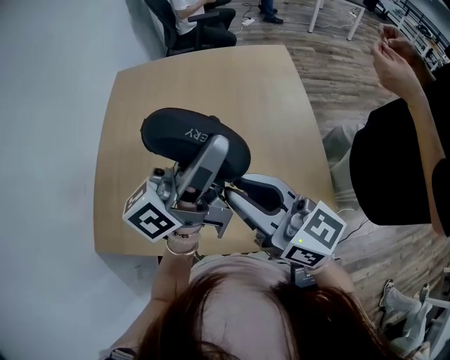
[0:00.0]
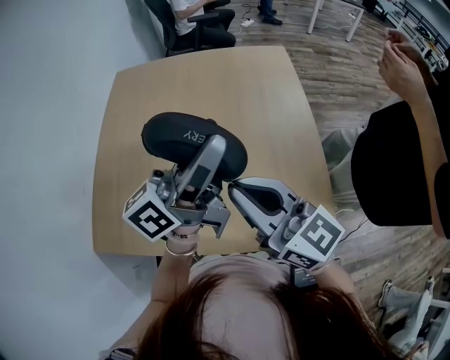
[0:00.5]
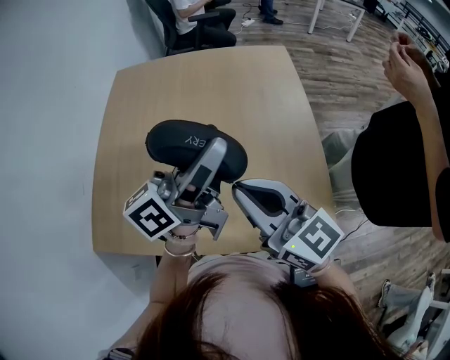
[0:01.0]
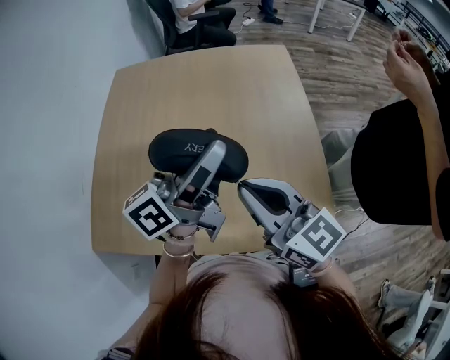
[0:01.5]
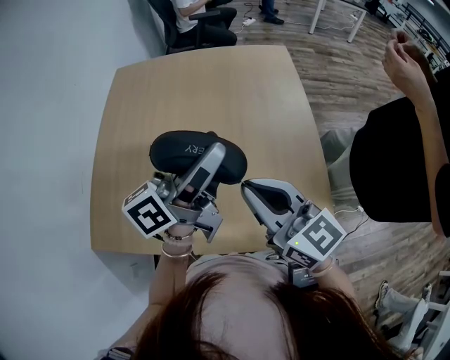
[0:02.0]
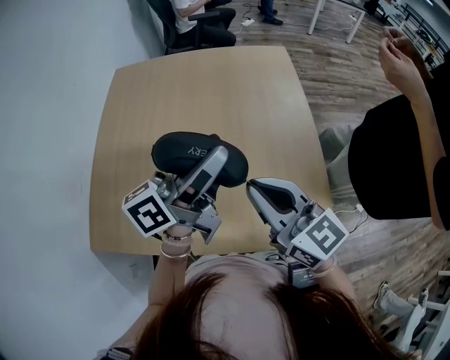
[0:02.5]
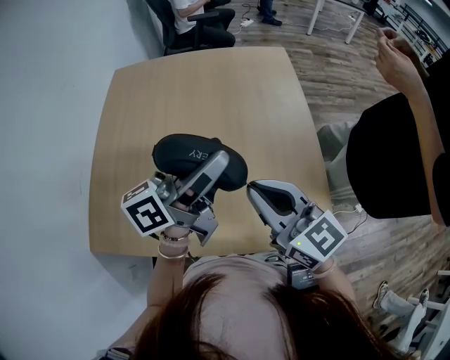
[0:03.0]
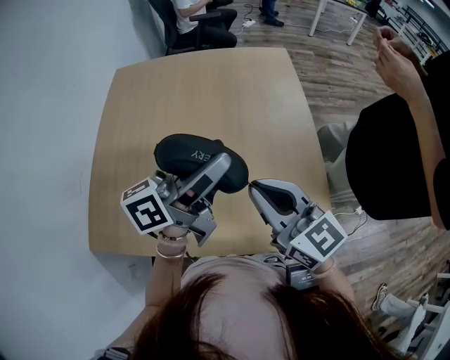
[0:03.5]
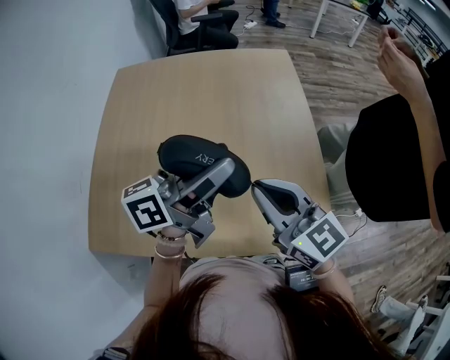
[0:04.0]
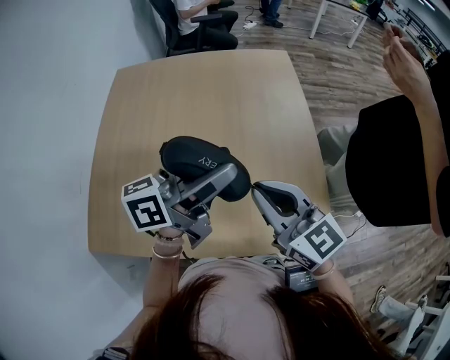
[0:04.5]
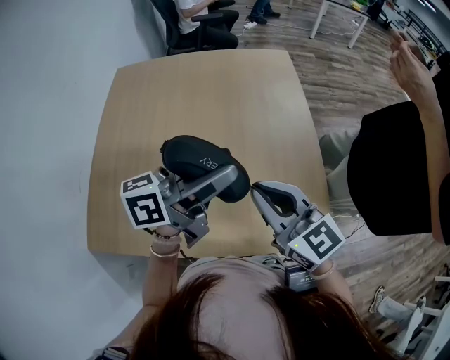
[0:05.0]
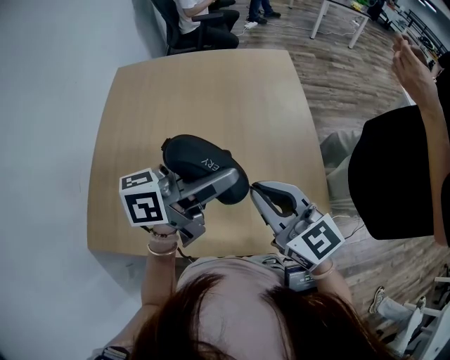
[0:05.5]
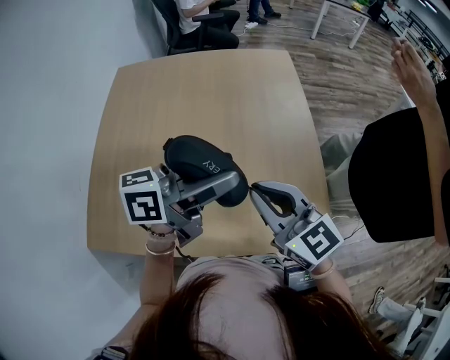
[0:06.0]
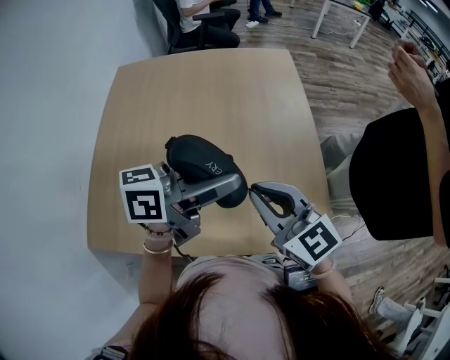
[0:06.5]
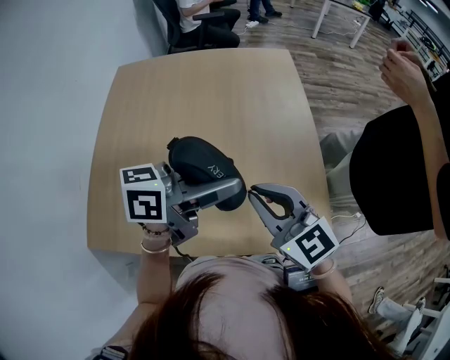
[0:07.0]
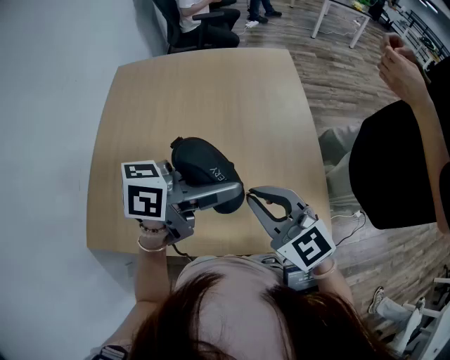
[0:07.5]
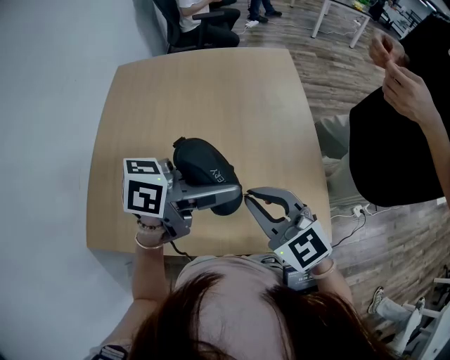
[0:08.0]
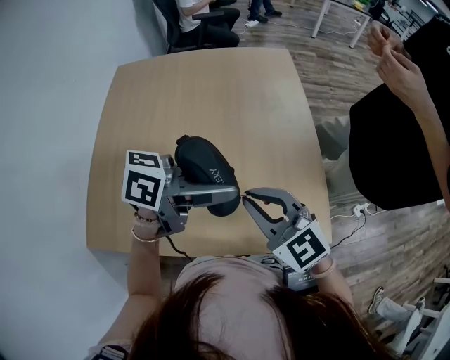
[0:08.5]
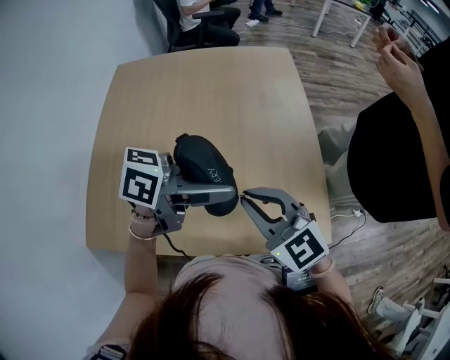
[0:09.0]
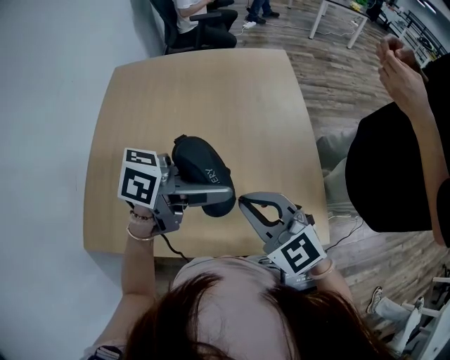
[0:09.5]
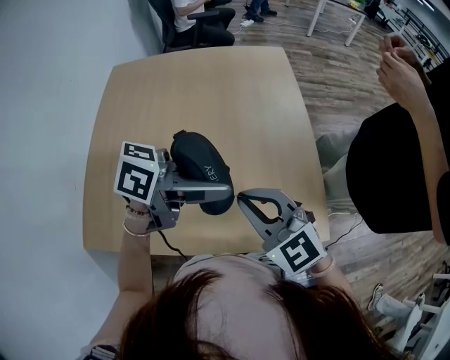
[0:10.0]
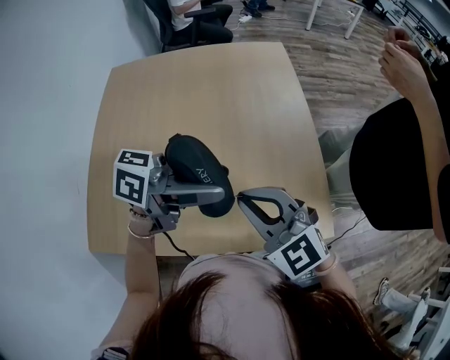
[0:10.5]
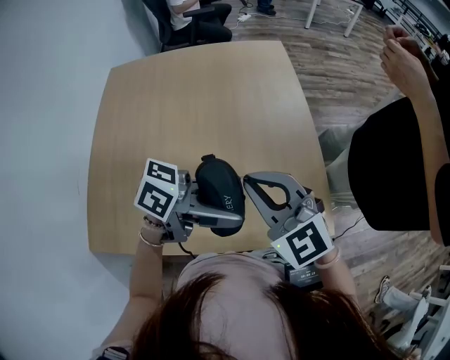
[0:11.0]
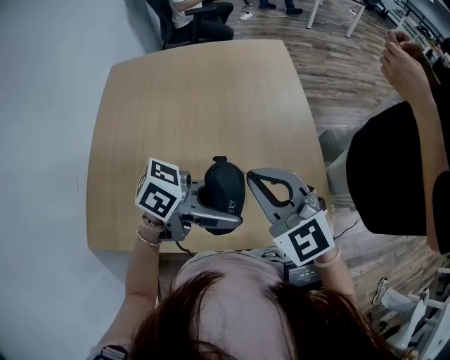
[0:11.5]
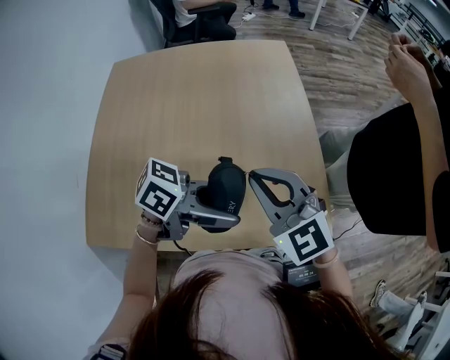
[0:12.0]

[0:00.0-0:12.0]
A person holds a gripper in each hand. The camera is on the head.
0:00.0 to 0:02.0: The left gripper shifts about 5 cm downward.
0:02.0 to 0:04.0: There are only small adjustments of the grippers.
0:04.0 to 0:06.0: There are only small adjustments of the grippers.
0:06.0 to 0:08.0: The grippers move only a little.
0:08.0 to 0:10.0: The grippers stay close to where they were, moving slightly.
0:10.0 to 0:12.0: The left gripper shifts by about 10 cm.

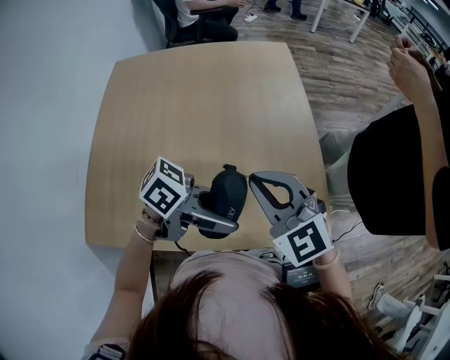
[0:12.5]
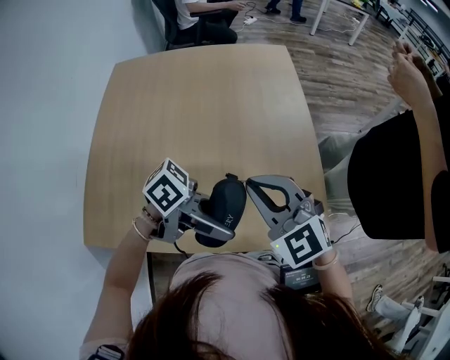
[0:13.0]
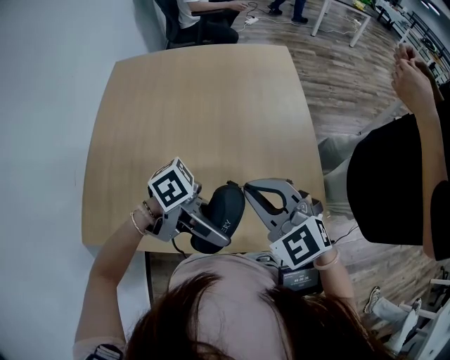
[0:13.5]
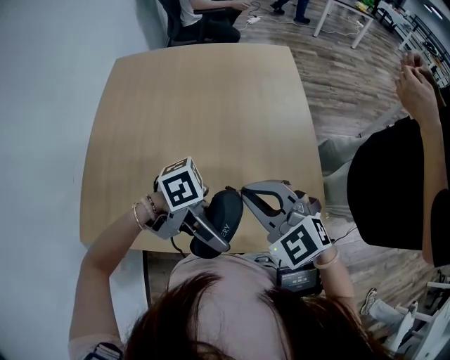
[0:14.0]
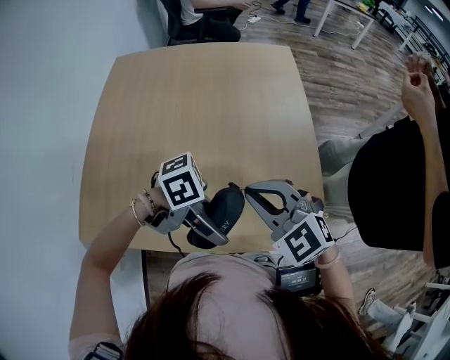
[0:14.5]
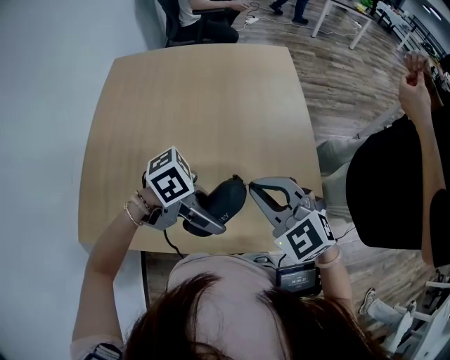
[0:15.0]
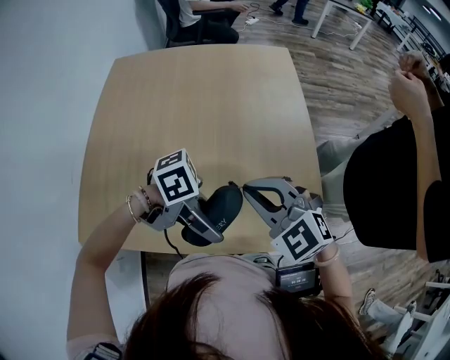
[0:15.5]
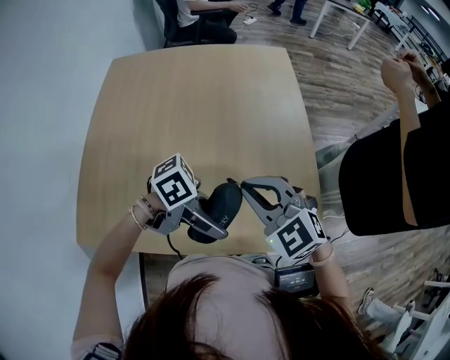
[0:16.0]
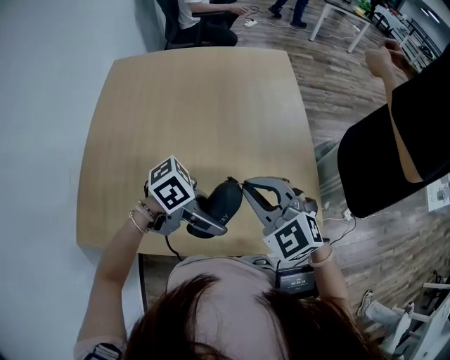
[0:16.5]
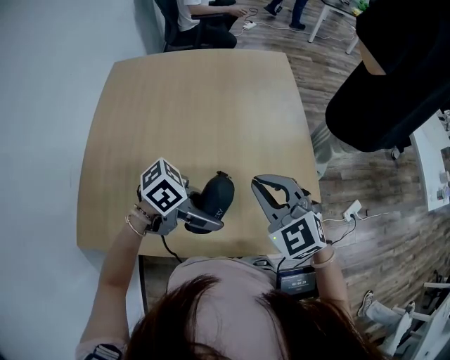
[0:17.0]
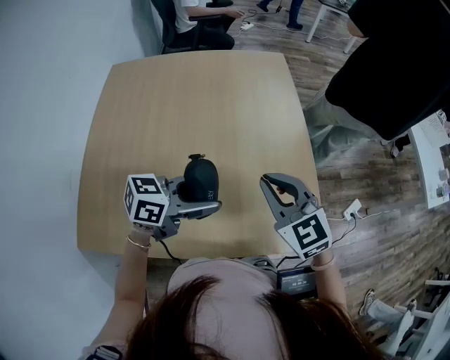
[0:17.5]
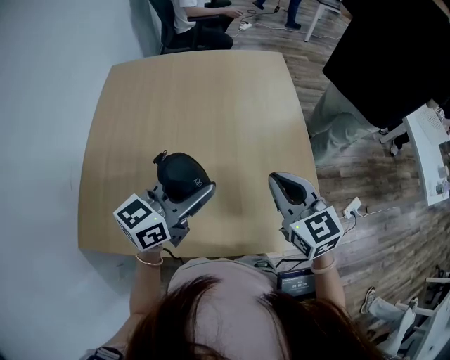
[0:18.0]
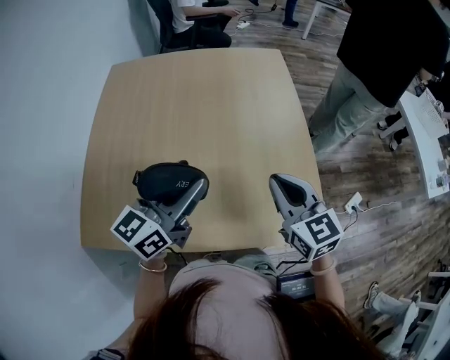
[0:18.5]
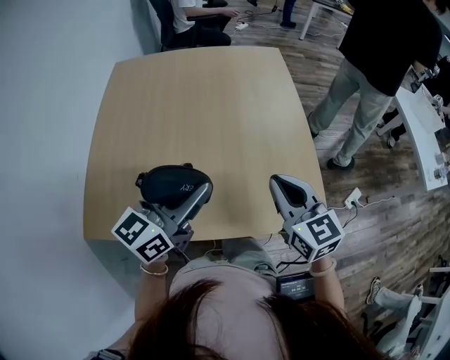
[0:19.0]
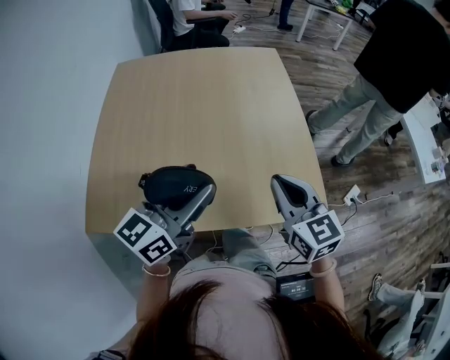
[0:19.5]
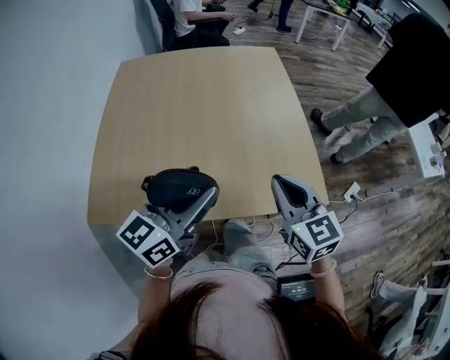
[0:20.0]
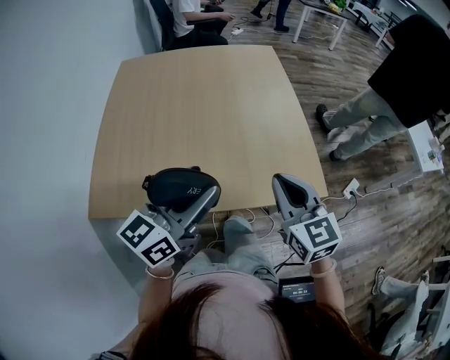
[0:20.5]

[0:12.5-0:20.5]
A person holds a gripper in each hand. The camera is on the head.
0:12.5 to 0:14.5: The left gripper moves some 5 cm, and rotates roughly 30 degrees.
0:14.5 to 0:16.5: The grippers stay close to where they were, moving slightly.
0:16.5 to 0:18.5: The right gripper moves roughly 5 cm, and changes its angle by about 40 degrees, while the left gripper shifts by approximately 20 cm, and swivels some 80 degrees.
0:18.5 to 0:20.5: The two grippers go some 15 cm backward.

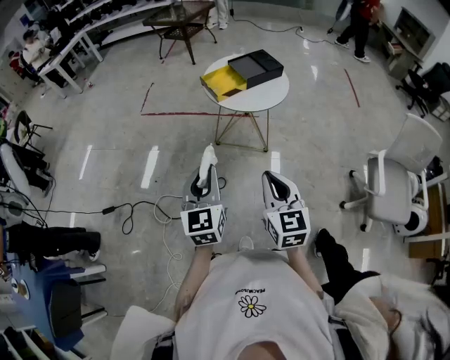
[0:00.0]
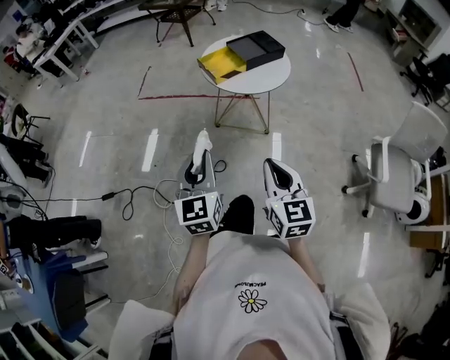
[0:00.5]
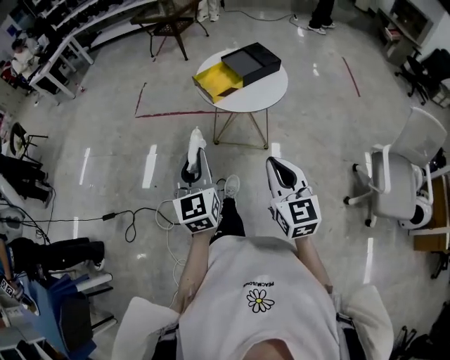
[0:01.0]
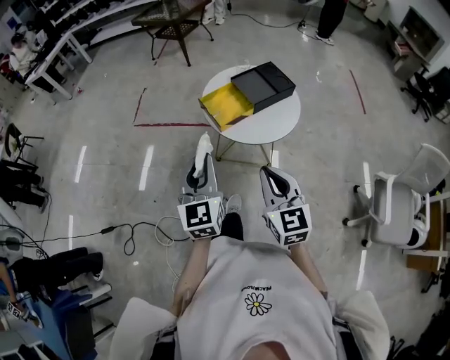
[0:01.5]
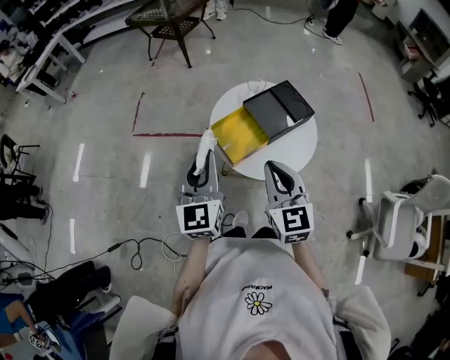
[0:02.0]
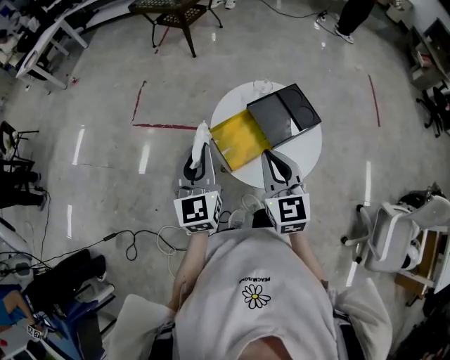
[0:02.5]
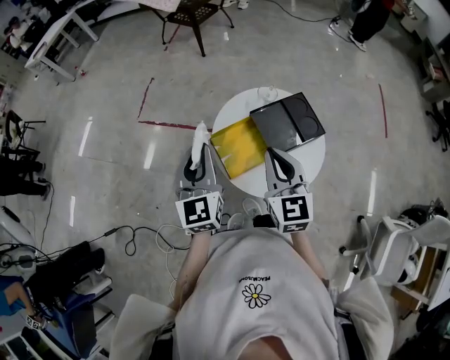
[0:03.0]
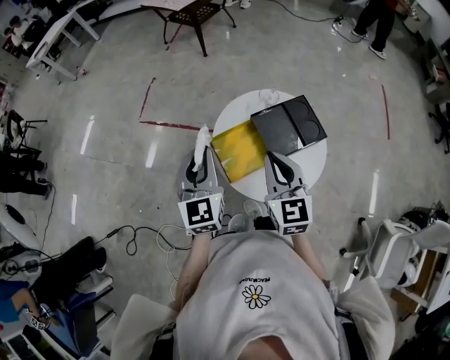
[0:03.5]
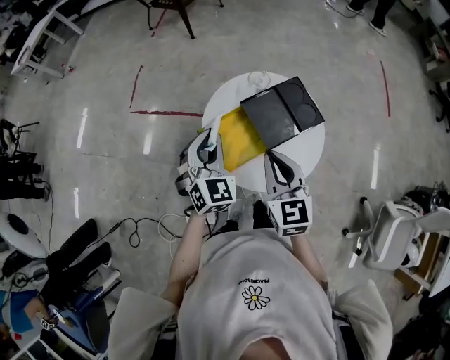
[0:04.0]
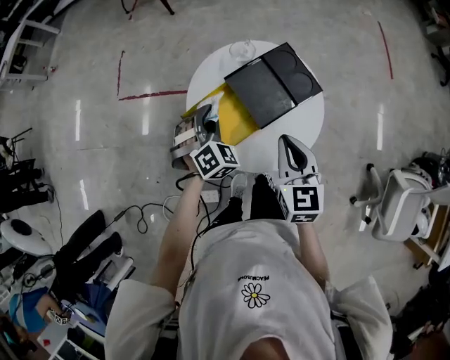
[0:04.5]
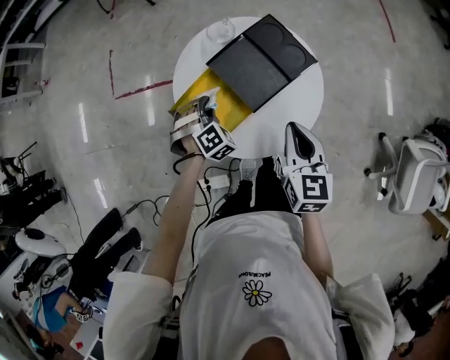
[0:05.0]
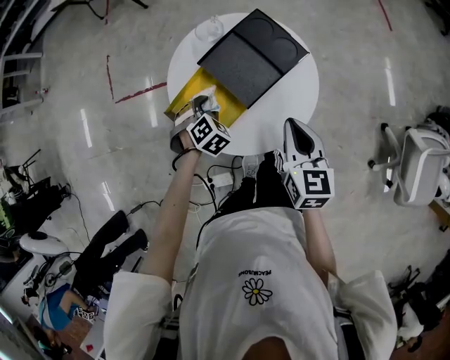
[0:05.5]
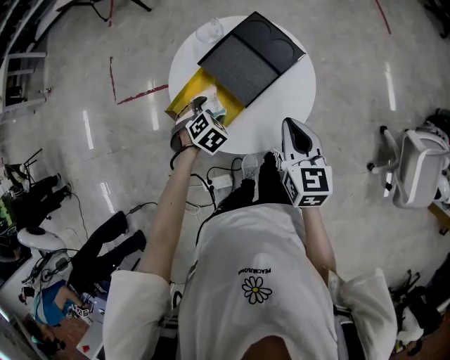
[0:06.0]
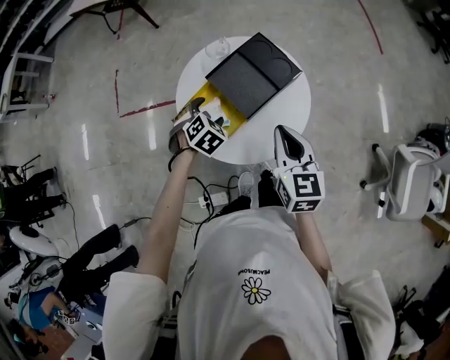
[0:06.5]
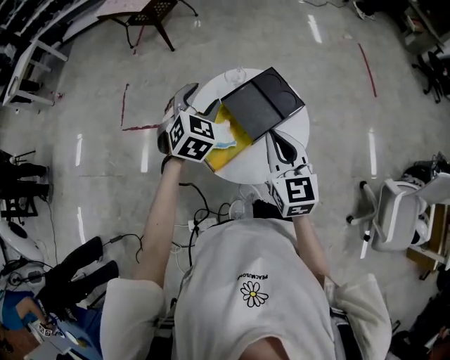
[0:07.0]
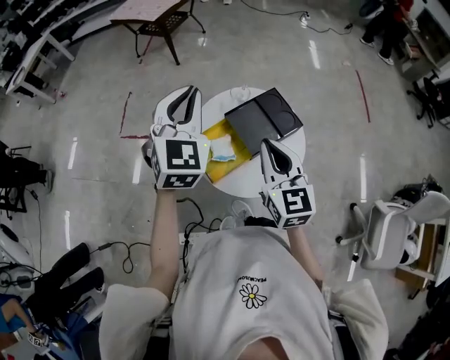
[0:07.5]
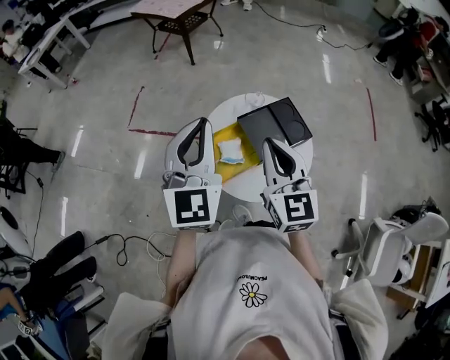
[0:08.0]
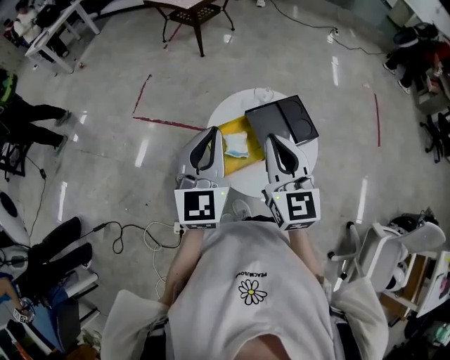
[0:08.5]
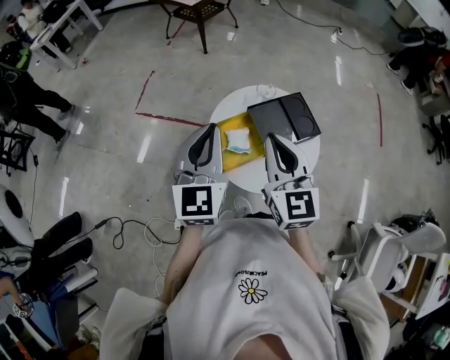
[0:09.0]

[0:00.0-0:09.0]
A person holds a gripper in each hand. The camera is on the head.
0:00.0 to 0:02.0: Both grippers are carried forward, about 40 cm.
0:02.0 to 0:04.5: The left gripper is displaced downward, forward and to the right by roughly 30 cm, and points its fingers about 40 degrees further downward. Meanwhile the right gripper heads to the right, forward and downward, covering approximately 20 cm.
0:04.5 to 0:07.0: The left gripper travels upward by about 15 cm, changes its angle by some 20 degrees, and opens its fingers, while the right gripper heads upward, covering about 10 cm.
0:07.0 to 0:09.0: The left gripper travels backward, upward and to the left by roughly 20 cm, angles its fingers upward, by approximately 30 degrees, and closes; the right gripper shifts approximately 10 cm to the left and upward.
